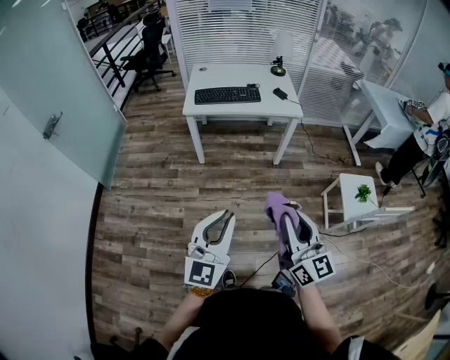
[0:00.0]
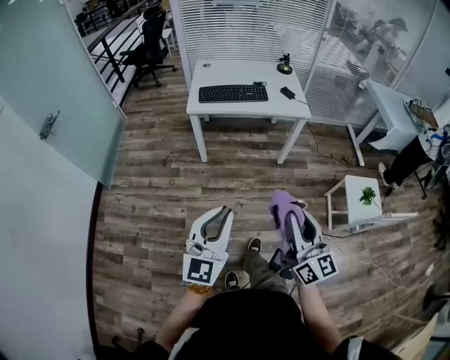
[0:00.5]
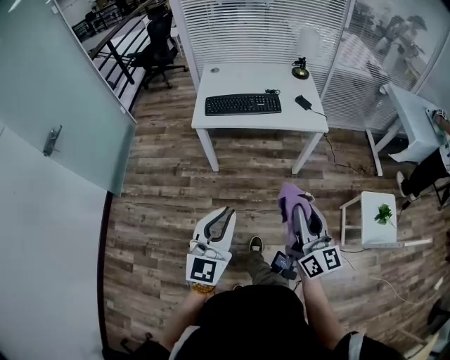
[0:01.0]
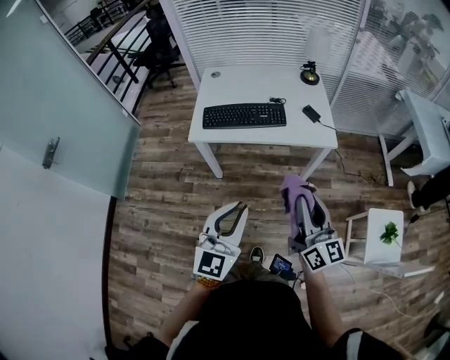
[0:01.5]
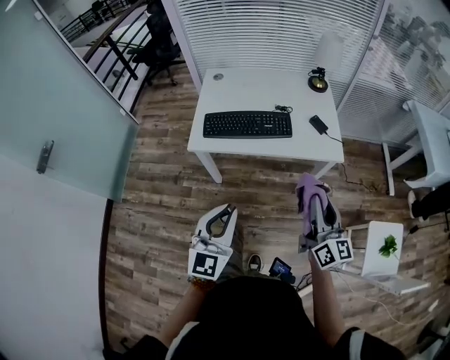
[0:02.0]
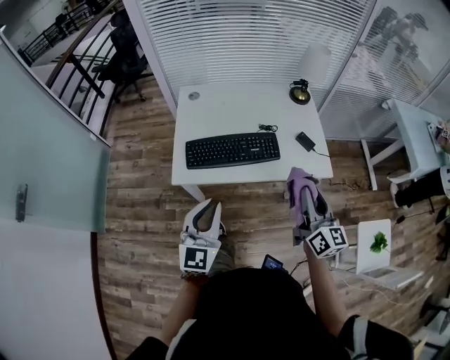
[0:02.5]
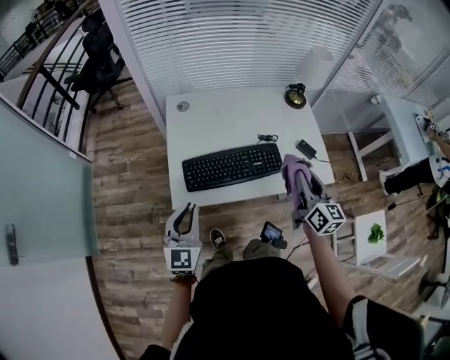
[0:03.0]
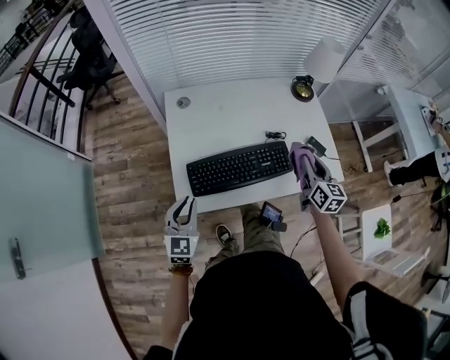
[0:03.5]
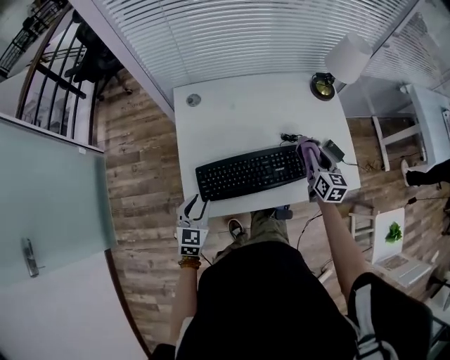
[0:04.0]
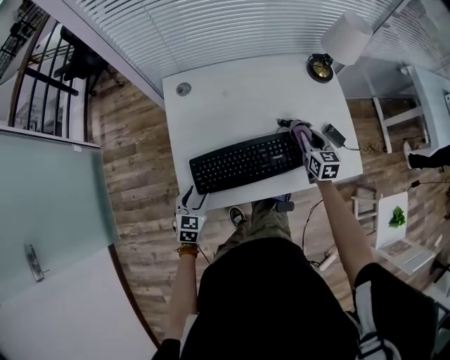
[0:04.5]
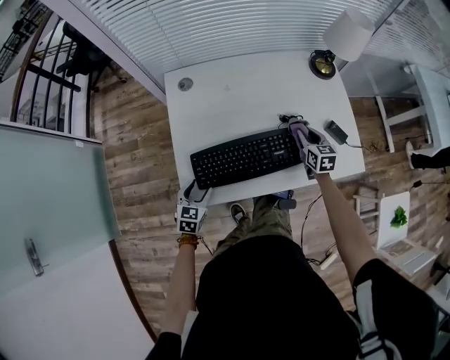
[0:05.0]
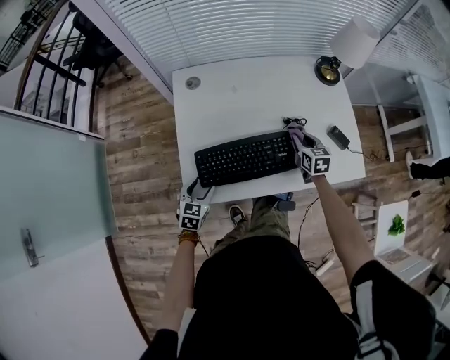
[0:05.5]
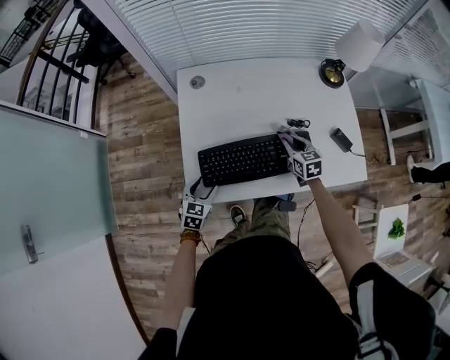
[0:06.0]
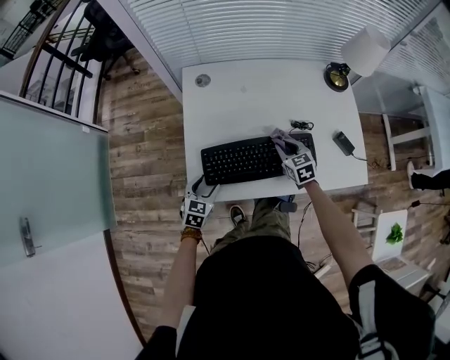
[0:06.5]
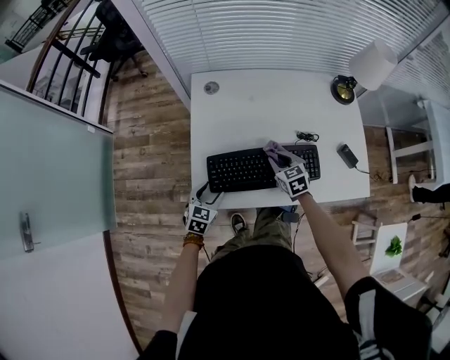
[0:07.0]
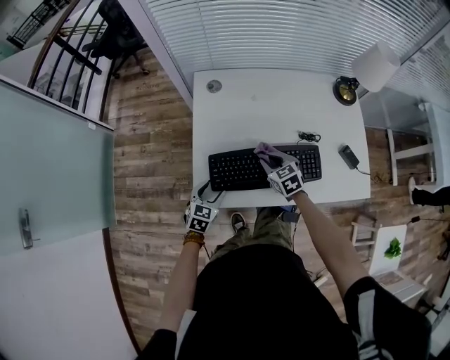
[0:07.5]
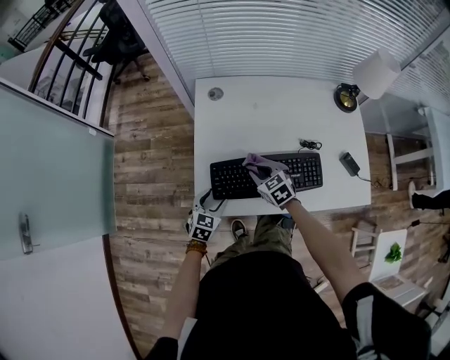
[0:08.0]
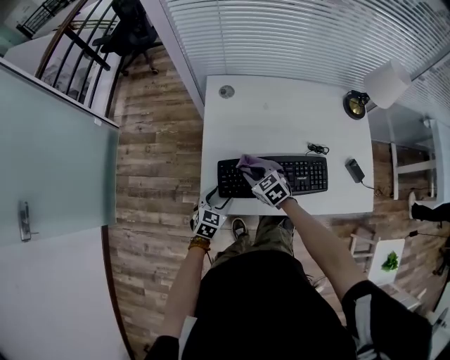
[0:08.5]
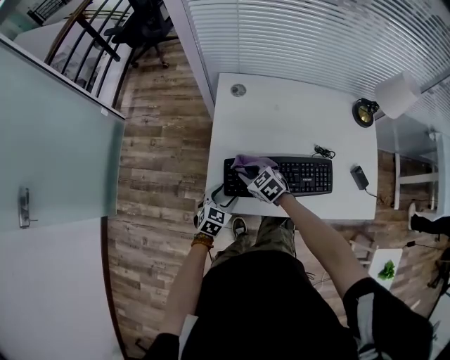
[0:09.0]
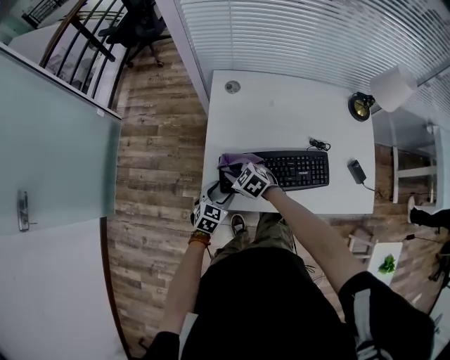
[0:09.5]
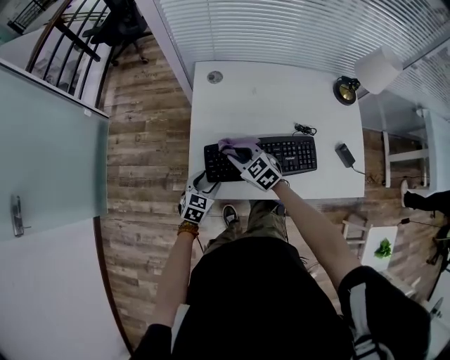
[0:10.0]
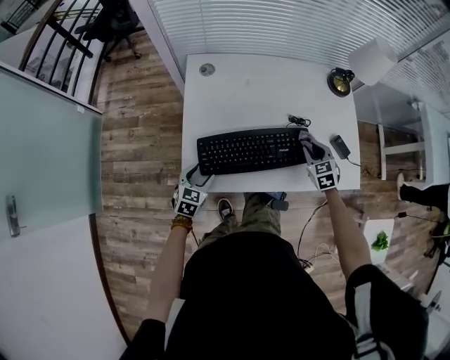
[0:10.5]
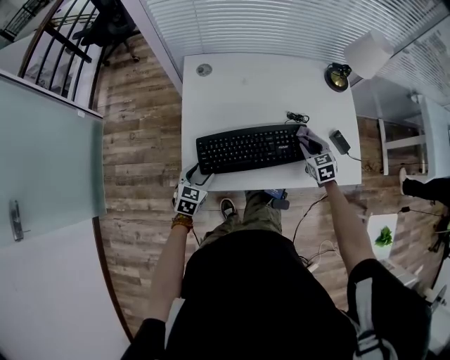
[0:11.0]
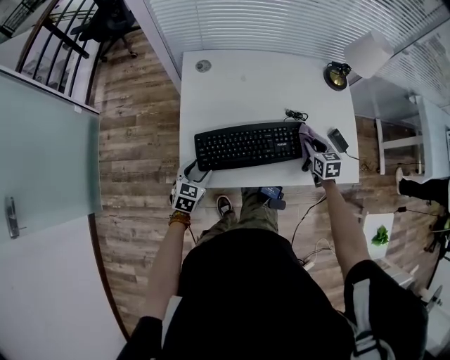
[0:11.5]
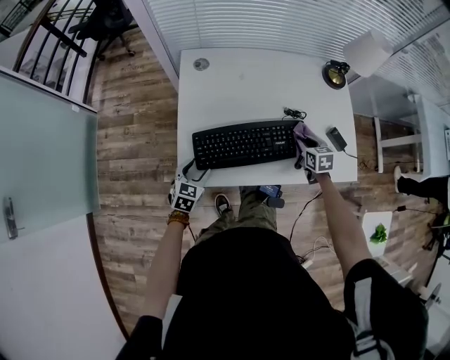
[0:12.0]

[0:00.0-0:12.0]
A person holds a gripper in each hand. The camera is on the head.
0:00.0 to 0:02.0: The two grippers travel together, forward, some 50 cm.
0:02.0 to 0:04.0: The pair of grippers is taken forward and to the left, about 40 cm. The two grippers go some 20 cm downward. The left gripper changes its angle by roughly 30 degrees; the right gripper turns by about 30 degrees.
0:04.0 to 0:06.0: The right gripper is displaced downward and to the left by approximately 15 cm, and swivels roughly 20 degrees; the left gripper heads downward, covering approximately 10 cm, and opens up.
0:06.0 to 0:08.0: The right gripper shifts roughly 20 cm to the left, and swivels roughly 30 degrees.
0:08.0 to 0:10.0: The right gripper shifts some 5 cm to the left.
0:10.0 to 0:12.0: The right gripper is displaced to the right by approximately 30 cm, and rotates some 40 degrees.

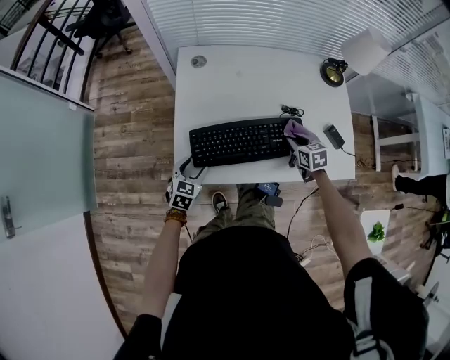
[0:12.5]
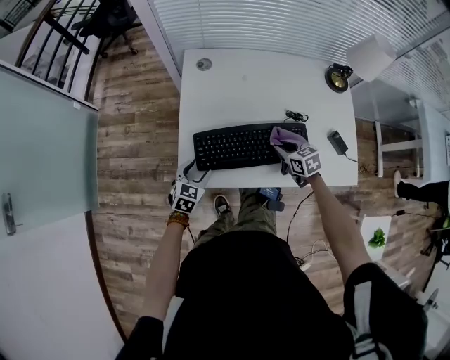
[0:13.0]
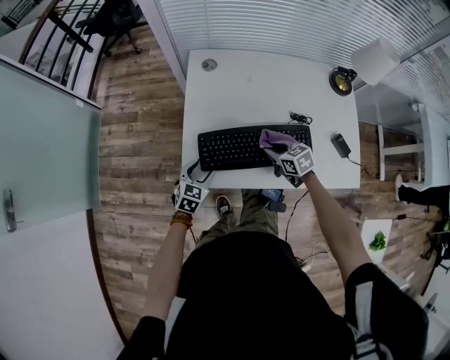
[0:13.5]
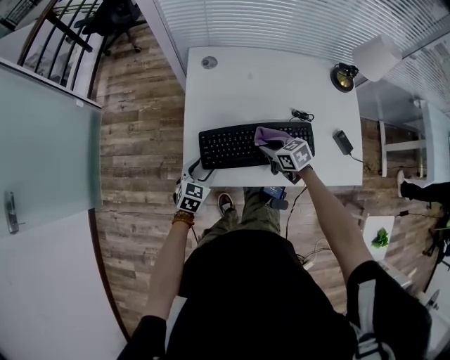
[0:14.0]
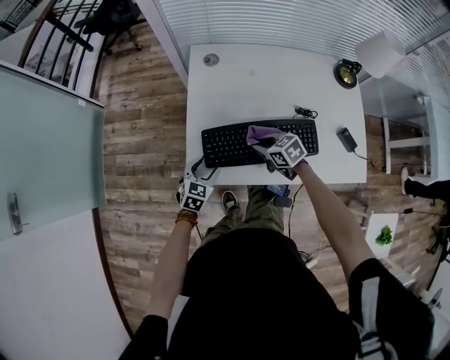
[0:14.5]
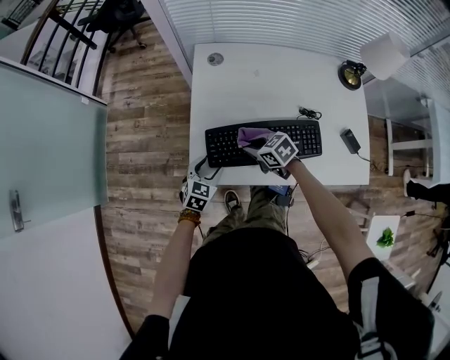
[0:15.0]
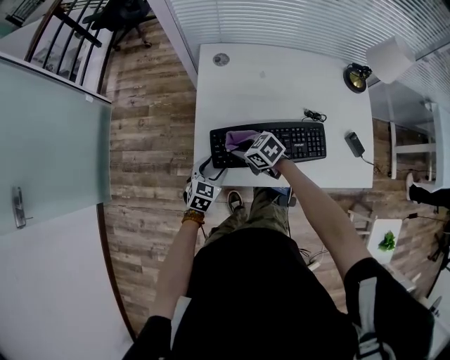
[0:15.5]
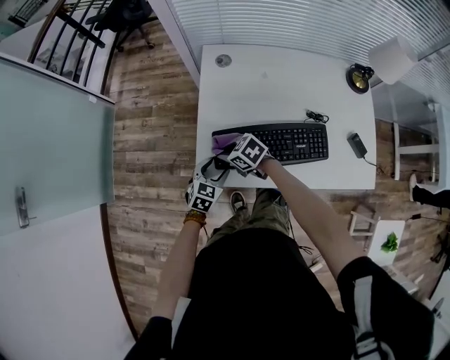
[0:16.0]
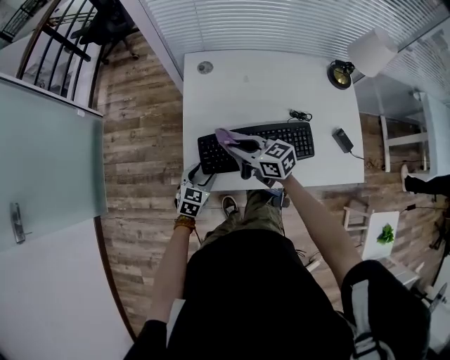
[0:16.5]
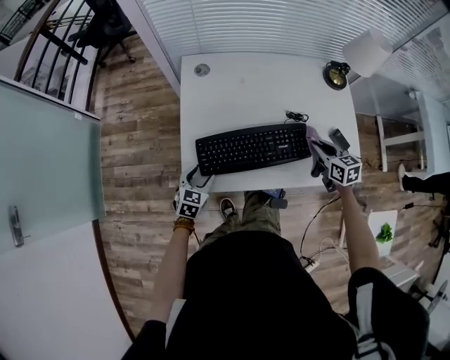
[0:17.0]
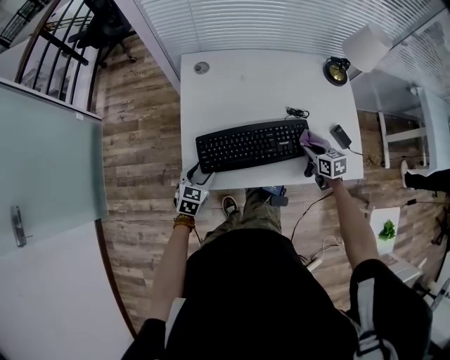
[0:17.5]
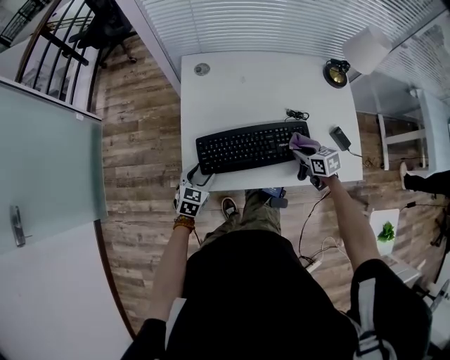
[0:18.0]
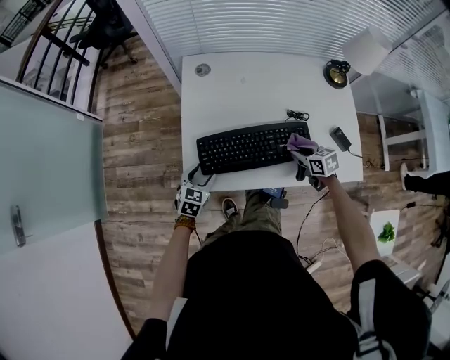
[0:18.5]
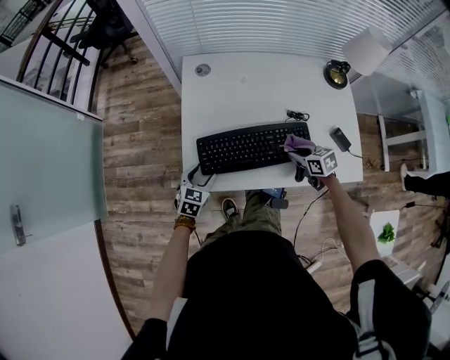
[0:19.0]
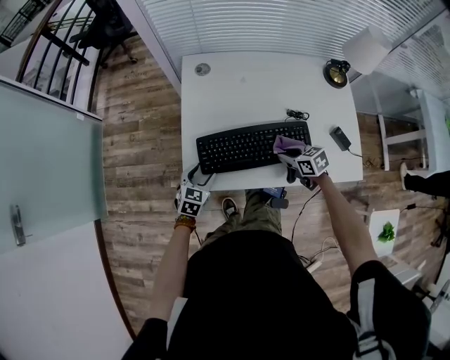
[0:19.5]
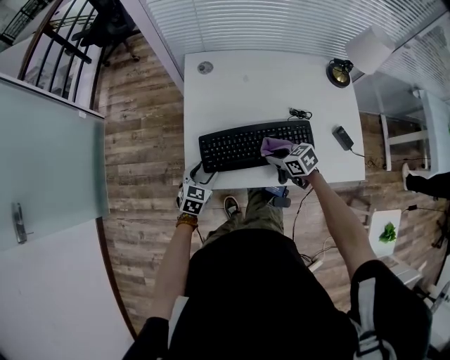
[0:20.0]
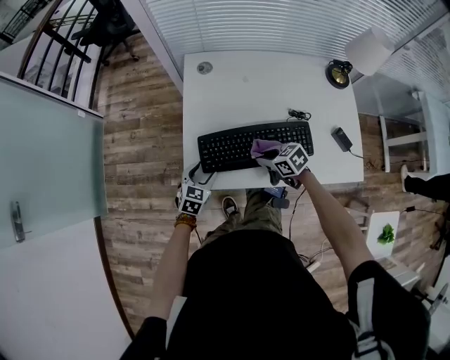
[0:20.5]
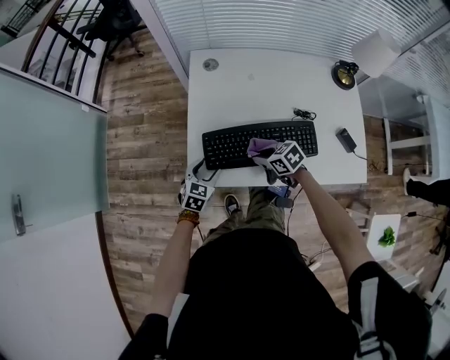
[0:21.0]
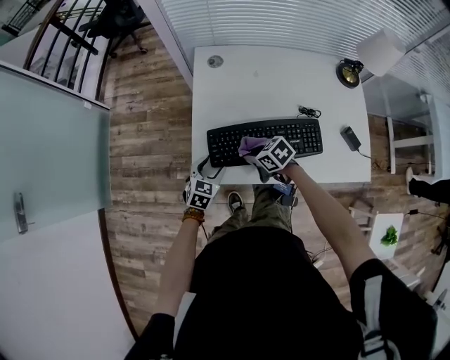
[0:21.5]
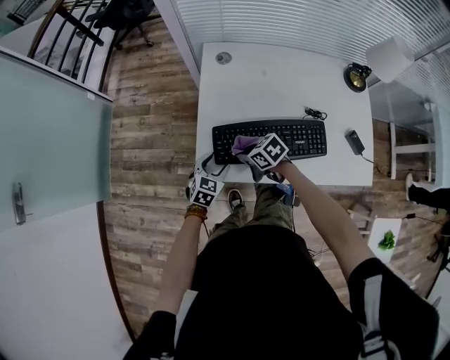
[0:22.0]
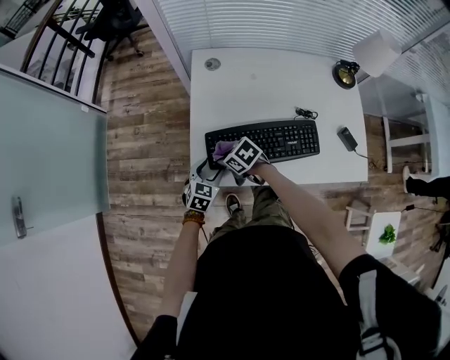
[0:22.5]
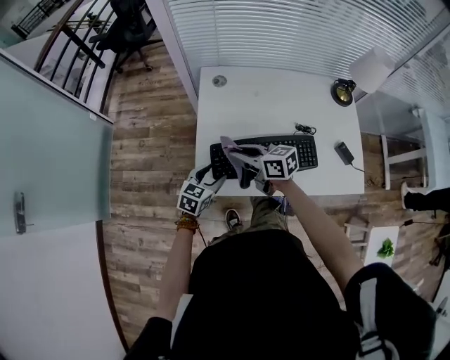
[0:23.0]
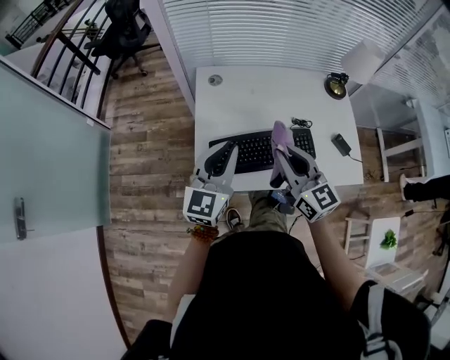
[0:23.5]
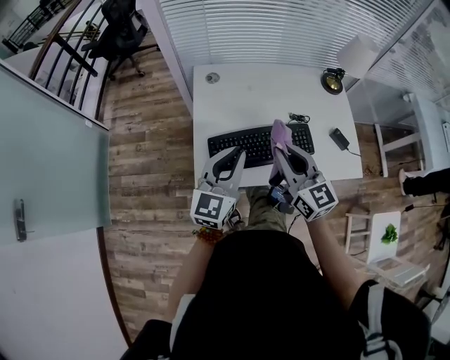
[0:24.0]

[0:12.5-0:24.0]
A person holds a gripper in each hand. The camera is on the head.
0:12.5 to 0:14.5: The right gripper goes roughly 20 cm to the left, and turns by approximately 30 degrees.
0:14.5 to 0:16.5: The right gripper travels upward and to the left by roughly 10 cm, and rotates about 30 degrees.
0:16.5 to 0:18.5: The right gripper moves to the right and downward, approximately 25 cm, and rotates about 30 degrees.
0:18.5 to 0:20.0: The right gripper is displaced to the left by about 10 cm.
0:20.0 to 0:22.0: The right gripper heads to the left, covering some 15 cm.
0:22.0 to 0:24.0: Both grippers move upward, approximately 30 cm. The left gripper angles its fingers upward, by roughly 40 degrees, and closes, while the right gripper tips its fingers upward by approximately 40 degrees.

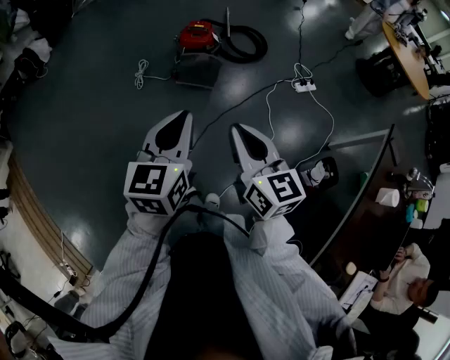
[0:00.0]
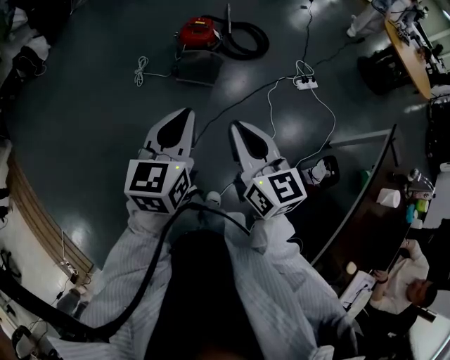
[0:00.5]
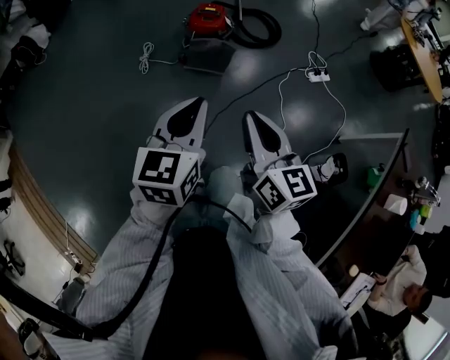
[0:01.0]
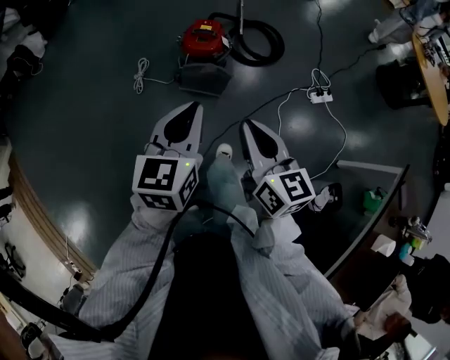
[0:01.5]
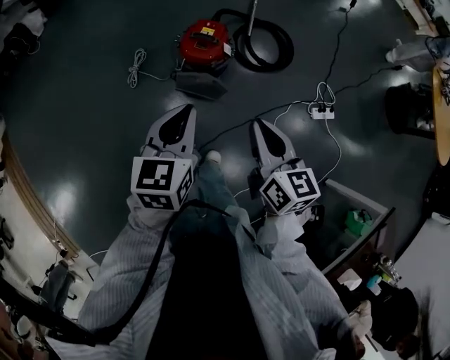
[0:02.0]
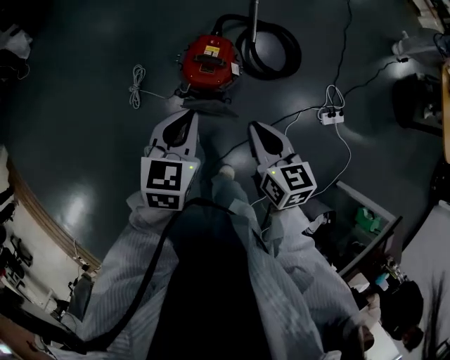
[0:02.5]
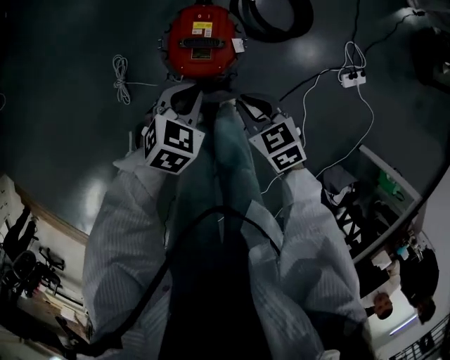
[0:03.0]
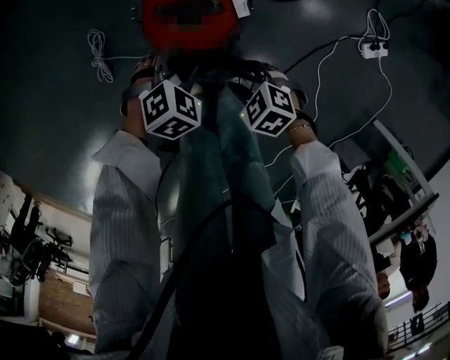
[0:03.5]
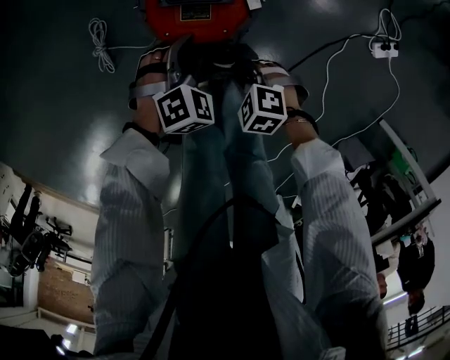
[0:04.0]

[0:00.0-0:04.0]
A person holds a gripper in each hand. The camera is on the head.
0:00.0 to 0:02.0: Both grippers are carried forward, some 50 cm.
0:02.0 to 0:04.0: The right gripper shifts roughly 60 cm downward, angles its fingers downward, by about 50 degrees, and opens and closes again. Meanwhile the left gripper shifts some 60 cm downward and forward, rolls clockwise, seen from behind, by approximately 70 degrees, and opens up.
